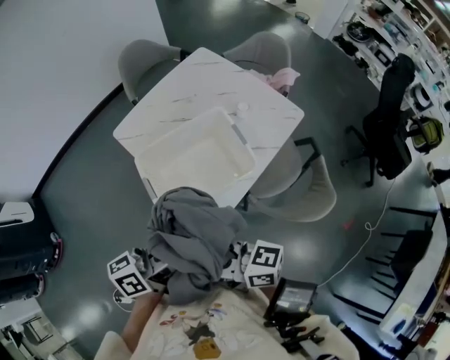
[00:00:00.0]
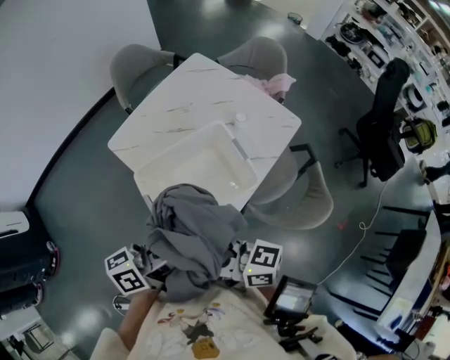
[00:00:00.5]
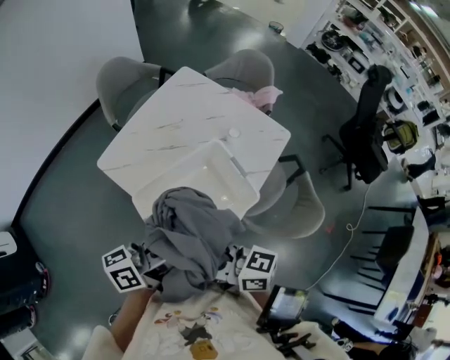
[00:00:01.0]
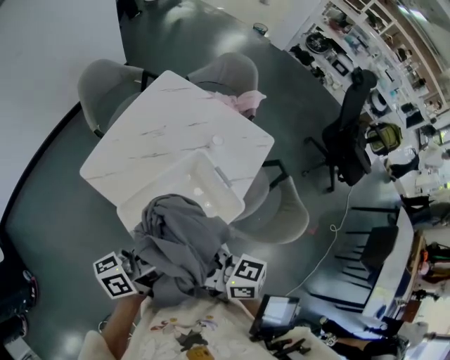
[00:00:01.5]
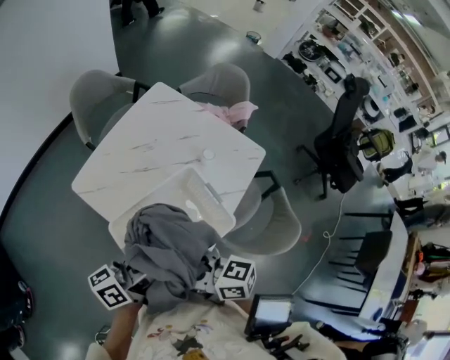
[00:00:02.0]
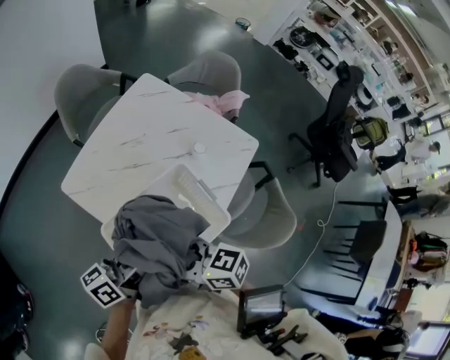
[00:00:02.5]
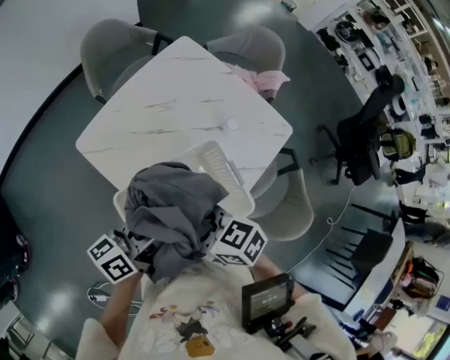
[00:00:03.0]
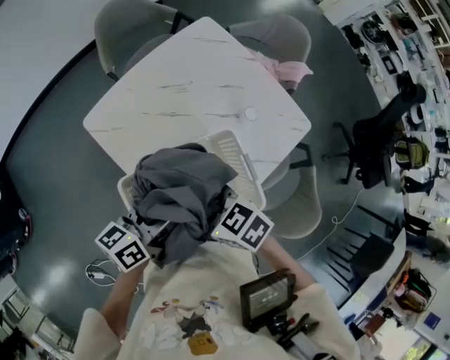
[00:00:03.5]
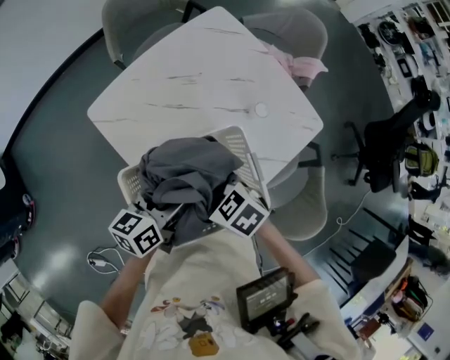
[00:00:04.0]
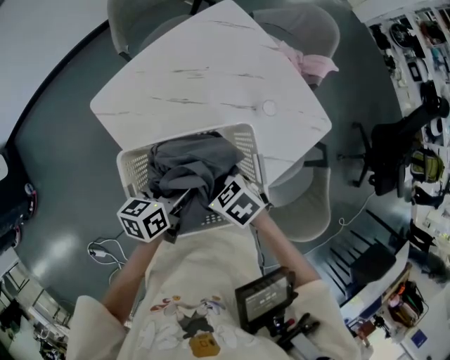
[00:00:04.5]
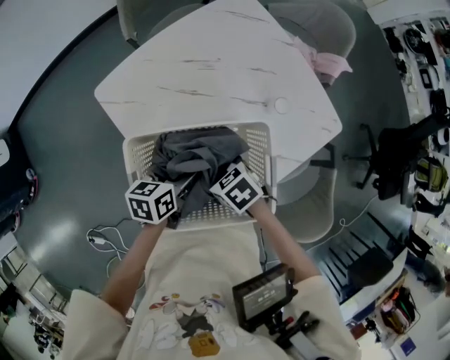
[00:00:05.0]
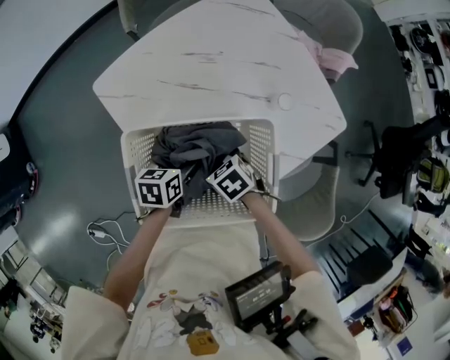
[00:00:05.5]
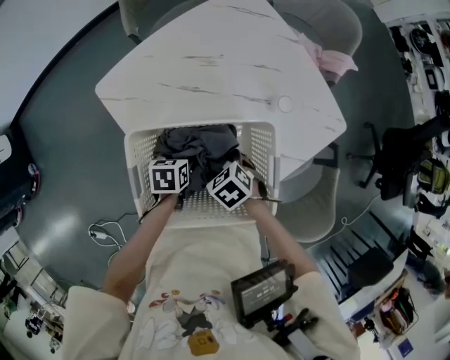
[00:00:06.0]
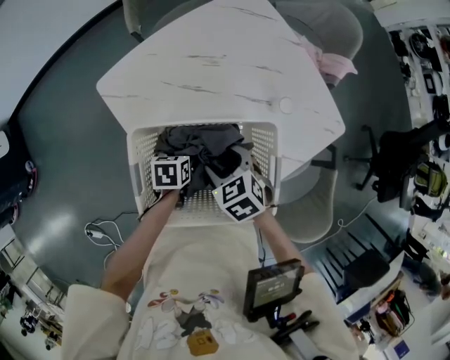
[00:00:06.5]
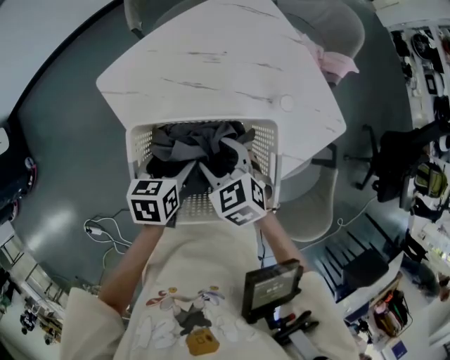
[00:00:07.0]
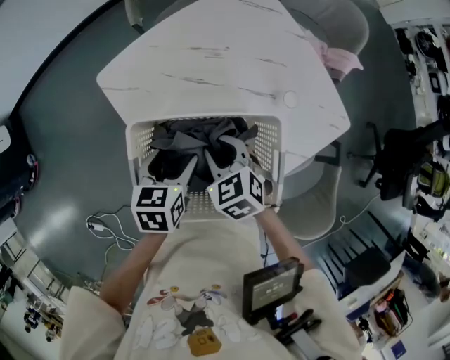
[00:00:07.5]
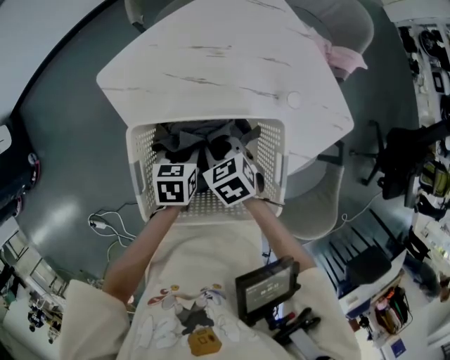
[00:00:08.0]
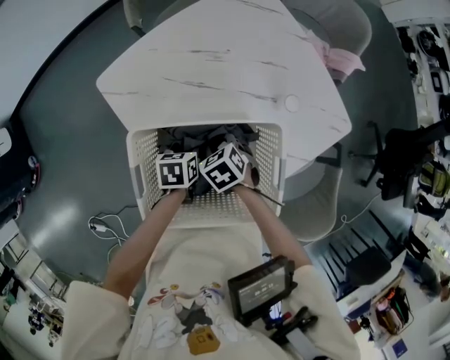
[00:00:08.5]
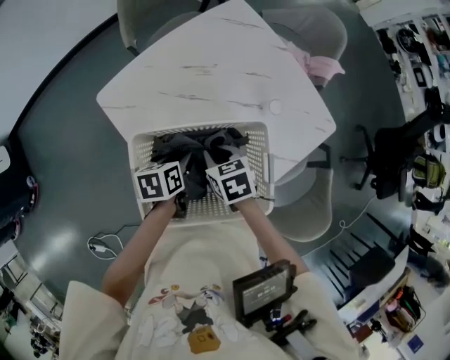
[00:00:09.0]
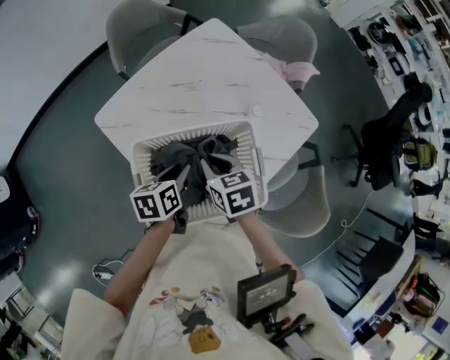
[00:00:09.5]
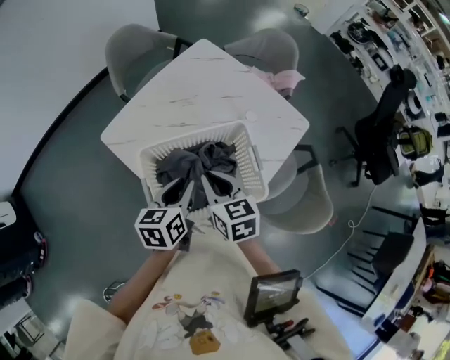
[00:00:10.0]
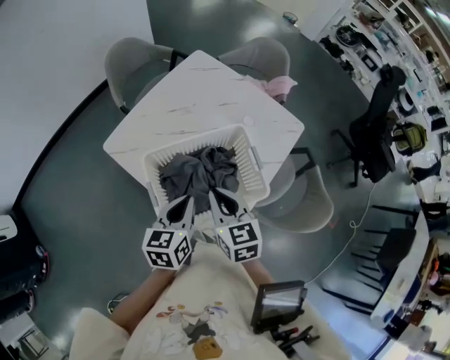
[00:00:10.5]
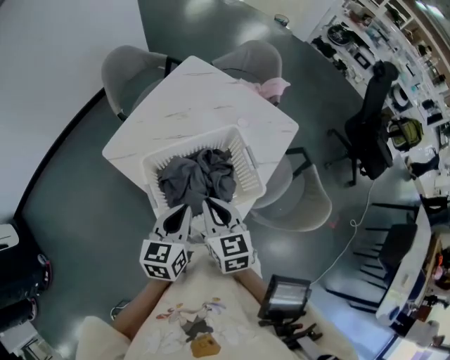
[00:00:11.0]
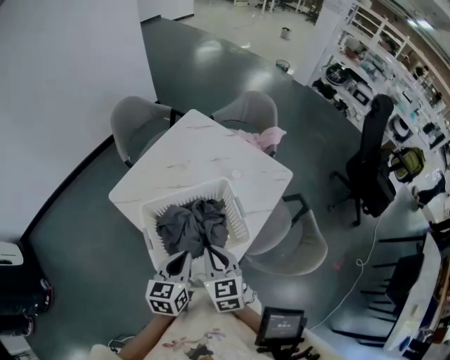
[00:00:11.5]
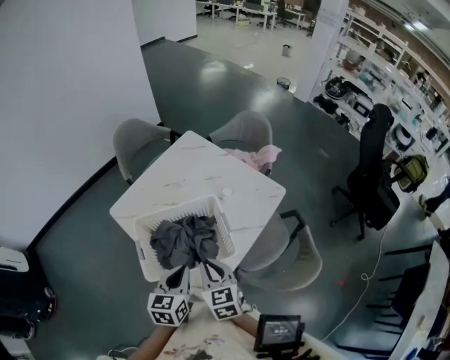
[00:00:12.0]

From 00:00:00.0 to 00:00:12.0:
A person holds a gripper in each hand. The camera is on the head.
From 00:00:00.0 to 00:00:02.0: The two grippers go approximately 15 cm forward.
From 00:00:02.0 to 00:00:04.0: Both grippers move downward and forward, about 20 cm. The right gripper tips its fingers downward by approximately 40 degrees, while the left gripper turns by about 30 degrees.
From 00:00:04.0 to 00:00:06.0: The two grippers go some 15 cm downward. The left gripper angles its fingers downward, by roughly 40 degrees.
From 00:00:06.0 to 00:00:08.0: The right gripper heads forward, covering roughly 5 cm, and closes its fingers, while the left gripper goes some 5 cm upward, and closes.
From 00:00:08.0 to 00:00:10.0: Both grippers travel together upward, roughly 15 cm. The left gripper changes its angle by about 30 degrees, while the right gripper rotates about 40 degrees.
From 00:00:10.0 to 00:00:12.0: The left gripper heads backward, to the right and upward, covering approximately 15 cm, while the right gripper goes approximately 15 cm backward and to the right.

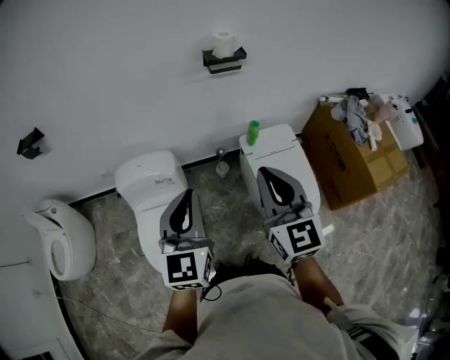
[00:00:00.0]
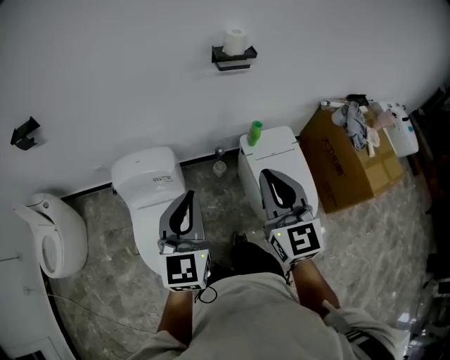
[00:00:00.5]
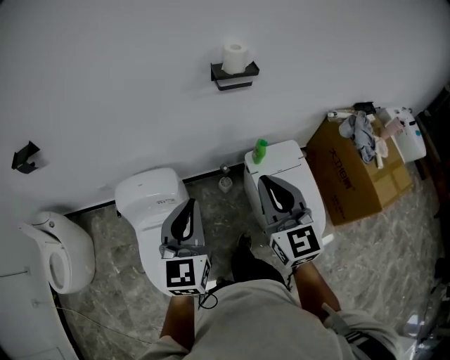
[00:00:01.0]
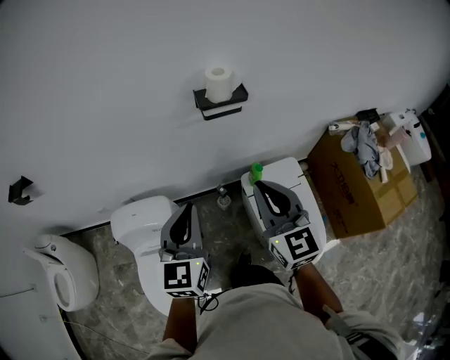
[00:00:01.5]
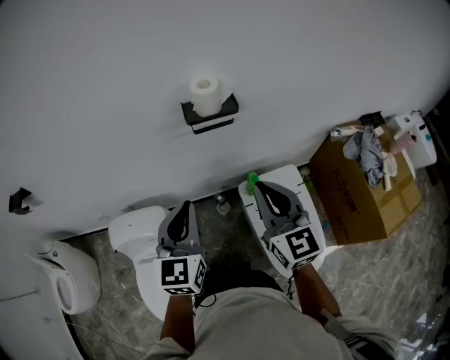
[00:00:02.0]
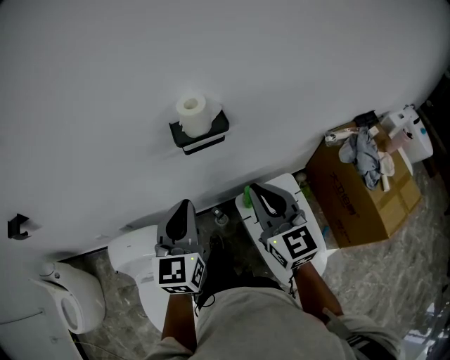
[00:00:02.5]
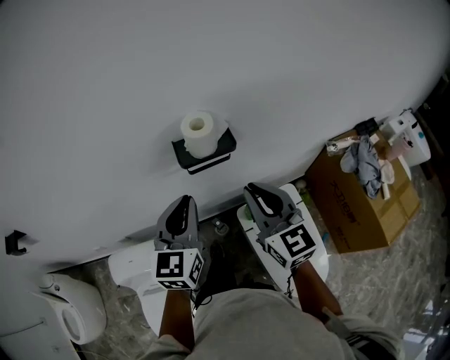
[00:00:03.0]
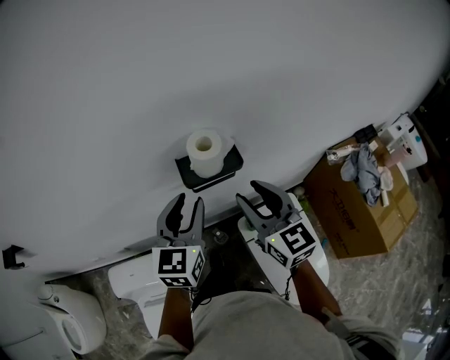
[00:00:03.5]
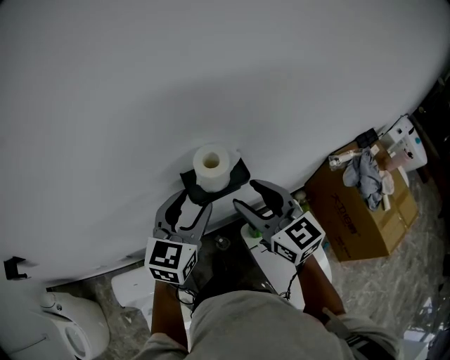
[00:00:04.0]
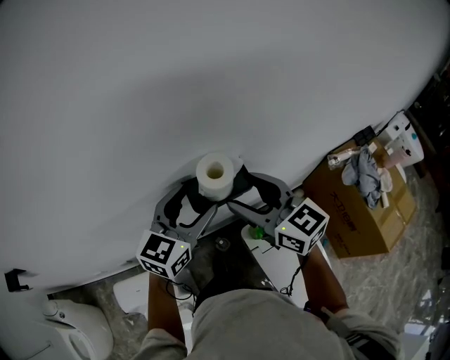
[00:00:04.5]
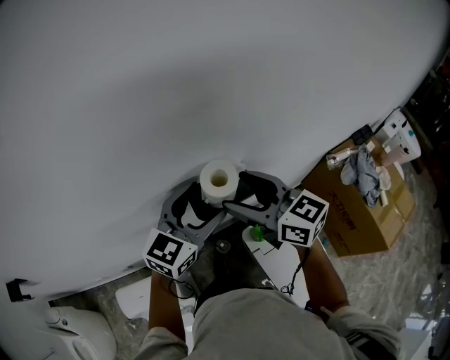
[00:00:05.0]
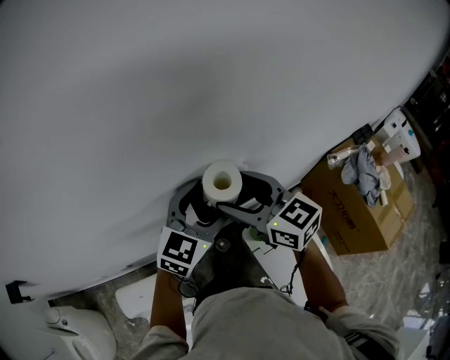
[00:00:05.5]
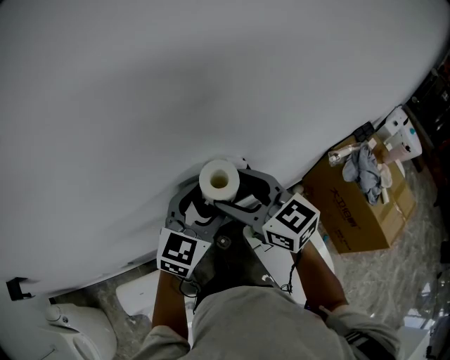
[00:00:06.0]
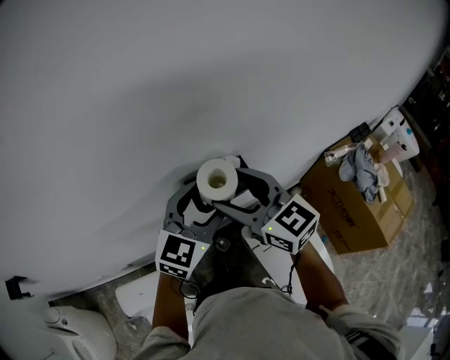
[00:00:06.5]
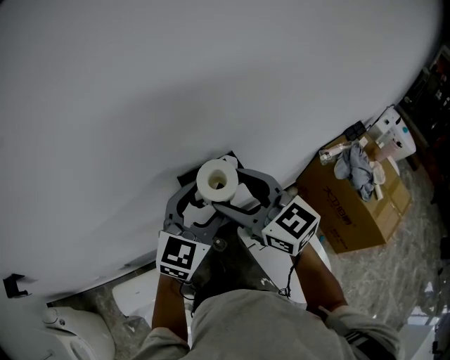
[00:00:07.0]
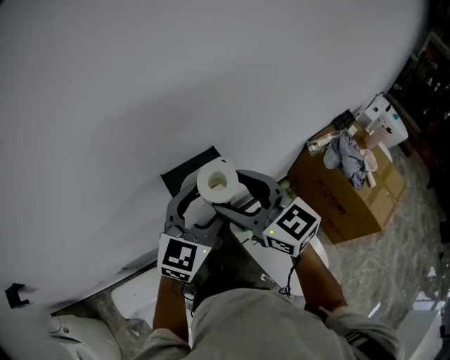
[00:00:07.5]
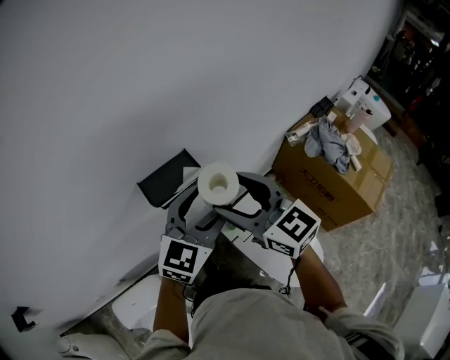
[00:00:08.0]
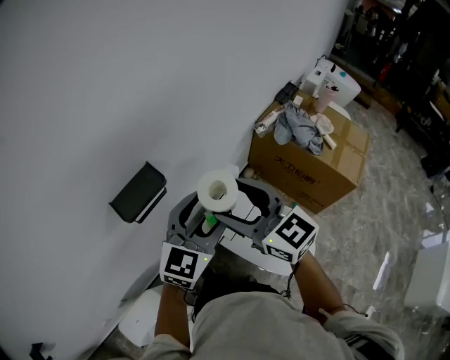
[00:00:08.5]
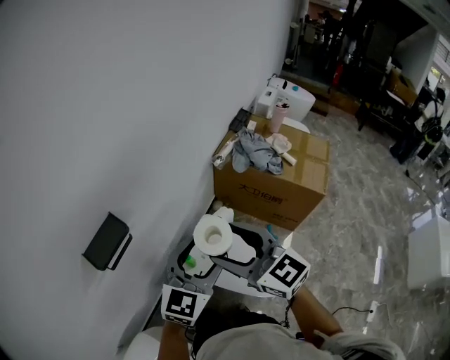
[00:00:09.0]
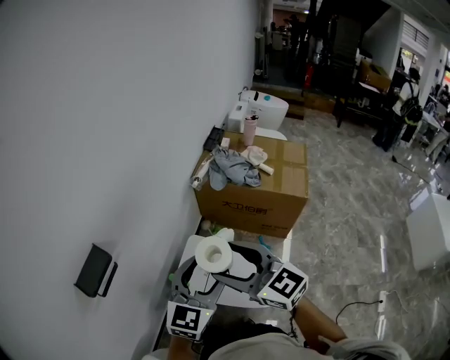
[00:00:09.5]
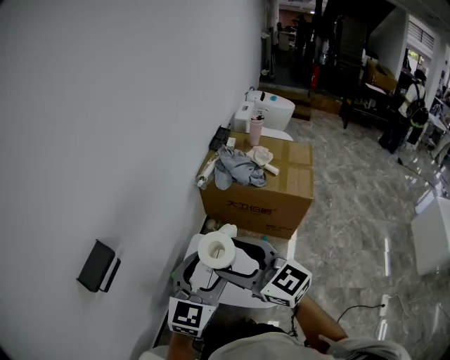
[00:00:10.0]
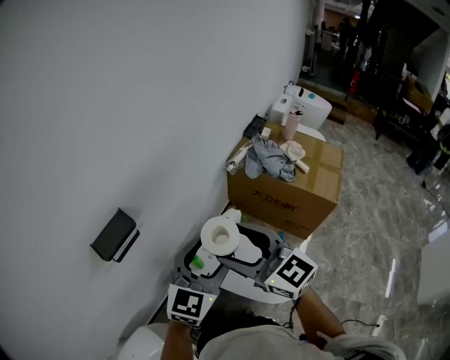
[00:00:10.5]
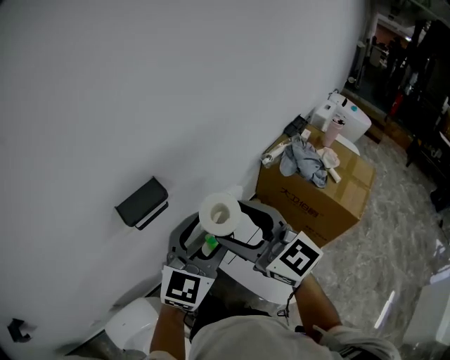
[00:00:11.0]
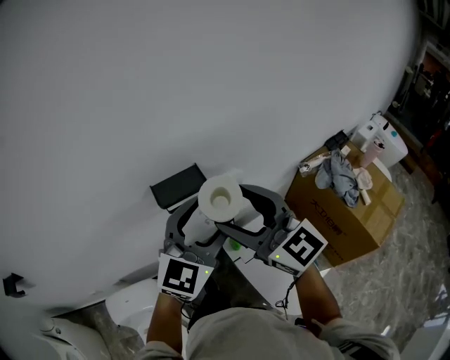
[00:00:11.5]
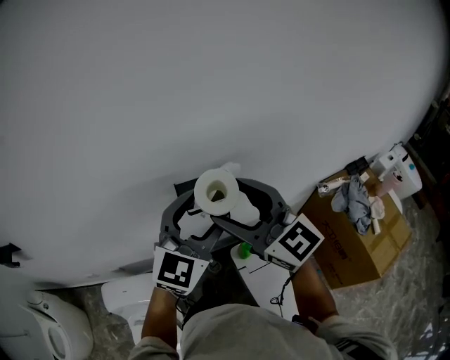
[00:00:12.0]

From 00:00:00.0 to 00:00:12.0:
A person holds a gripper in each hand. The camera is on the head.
From 00:00:00.0 to 00:00:02.0: The two grippers go roughly 30 cm forward.
From 00:00:02.0 to 00:00:04.0: Both grippers travel together forward, approximately 25 cm. The right gripper opens. Meanwhile the left gripper rotates some 20 degrees, and opens up.
From 00:00:04.0 to 00:00:06.0: The right gripper goes approximately 10 cm to the left and forward; the left gripper ends up about 5 cm from where it was.
From 00:00:06.0 to 00:00:08.0: Both grippers move to the right and backward, approximately 15 cm.
From 00:00:08.0 to 00:00:10.0: The left gripper changes place by approximately 25 cm, and changes its angle by approximately 30 degrees. The right gripper changes place by about 25 cm, and swivels roughly 30 degrees.
From 00:00:10.0 to 00:00:12.0: The right gripper moves some 30 cm, and turns by approximately 50 degrees. The left gripper changes place by about 30 cm, and turns by some 50 degrees.

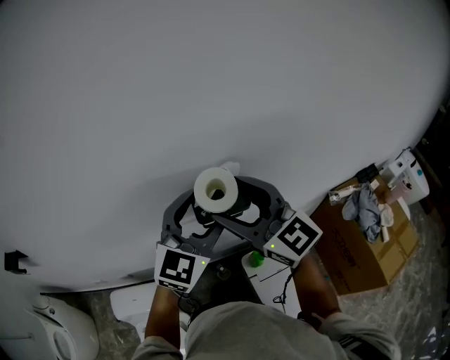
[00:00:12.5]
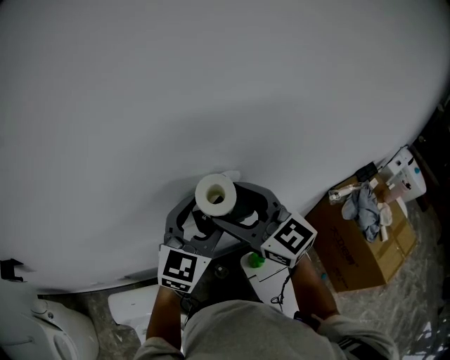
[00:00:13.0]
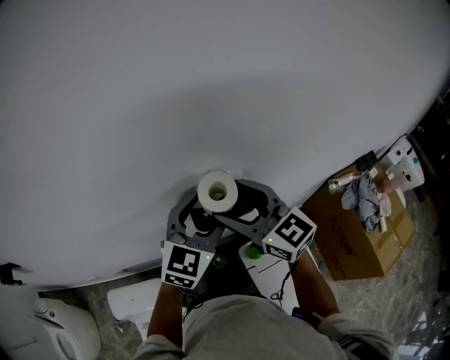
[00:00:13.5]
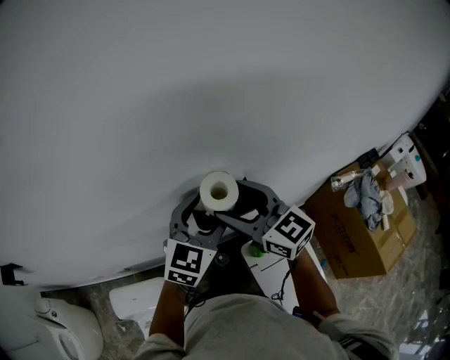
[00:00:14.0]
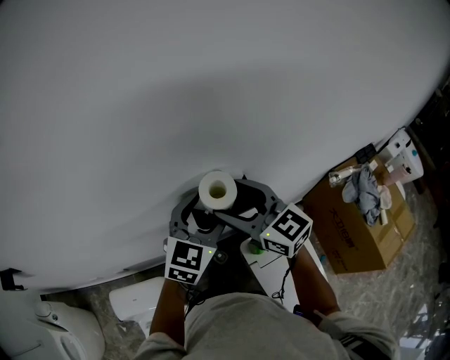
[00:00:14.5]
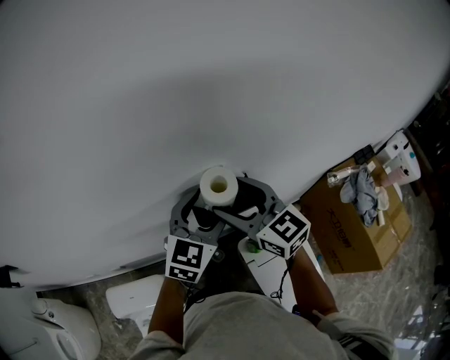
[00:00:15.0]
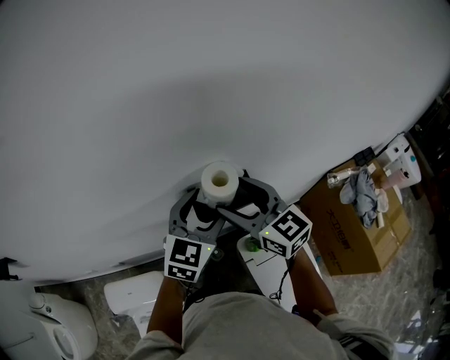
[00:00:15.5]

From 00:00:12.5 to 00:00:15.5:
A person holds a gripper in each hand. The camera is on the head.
From 00:00:12.5 to 00:00:14.0: The two grippers go some 15 cm downward and forward.
From 00:00:14.0 to 00:00:15.5: The grippers move only a little.
